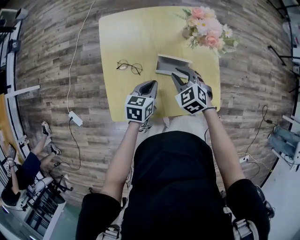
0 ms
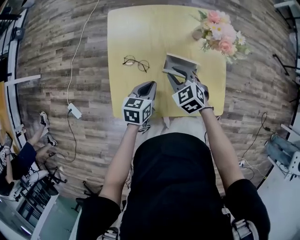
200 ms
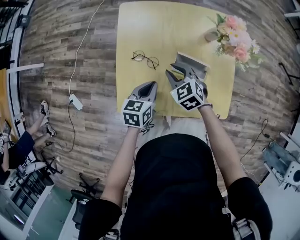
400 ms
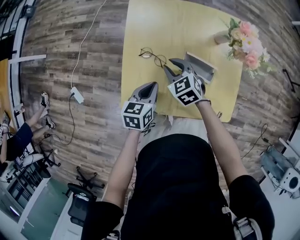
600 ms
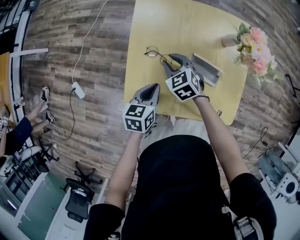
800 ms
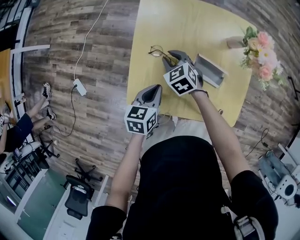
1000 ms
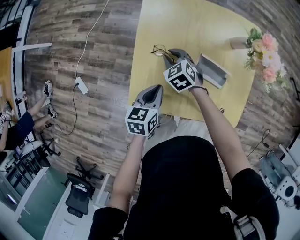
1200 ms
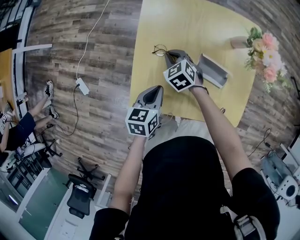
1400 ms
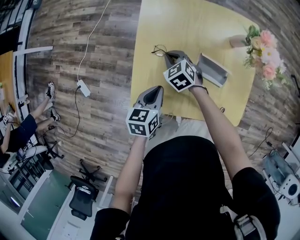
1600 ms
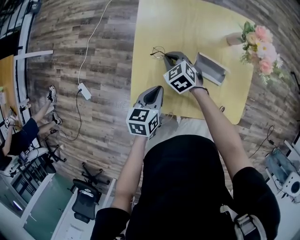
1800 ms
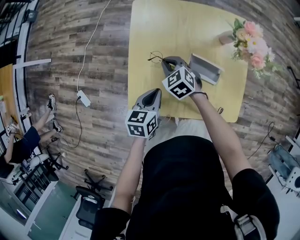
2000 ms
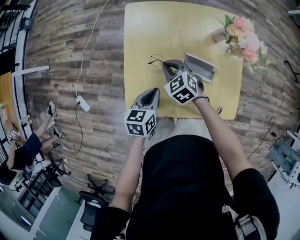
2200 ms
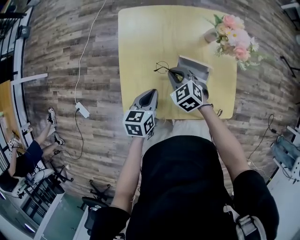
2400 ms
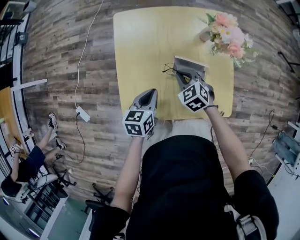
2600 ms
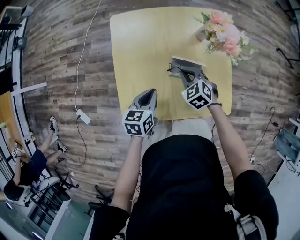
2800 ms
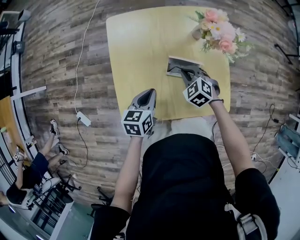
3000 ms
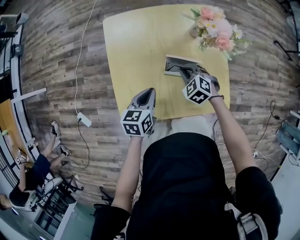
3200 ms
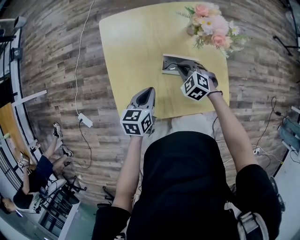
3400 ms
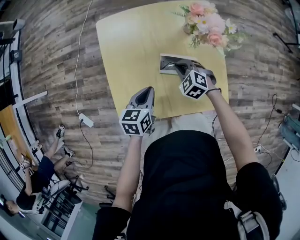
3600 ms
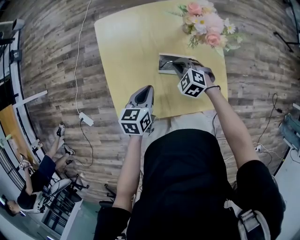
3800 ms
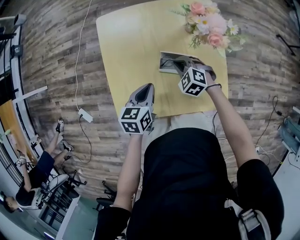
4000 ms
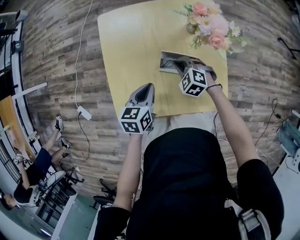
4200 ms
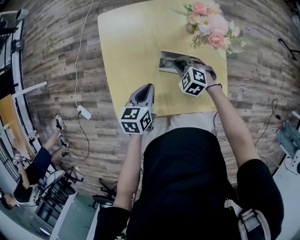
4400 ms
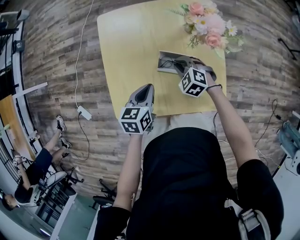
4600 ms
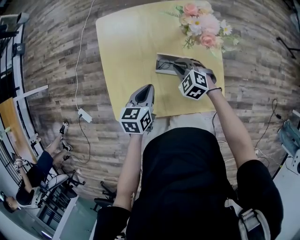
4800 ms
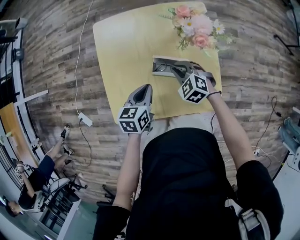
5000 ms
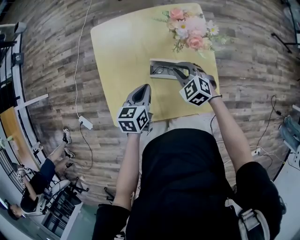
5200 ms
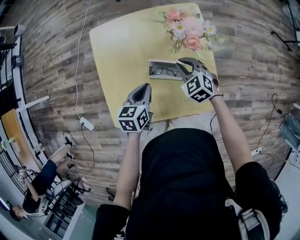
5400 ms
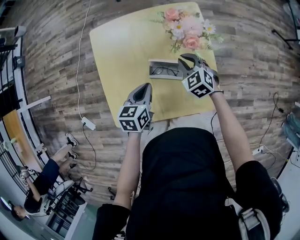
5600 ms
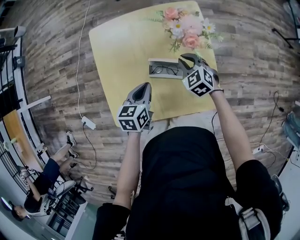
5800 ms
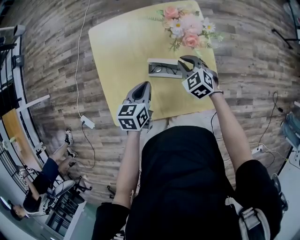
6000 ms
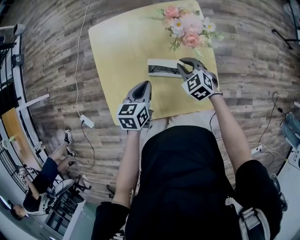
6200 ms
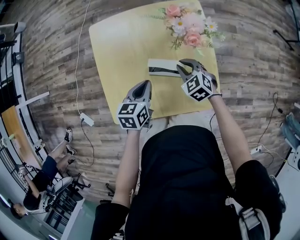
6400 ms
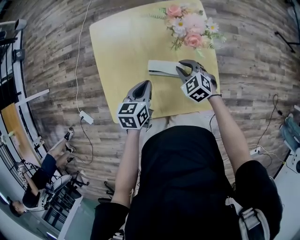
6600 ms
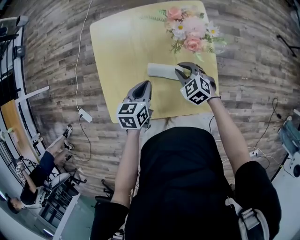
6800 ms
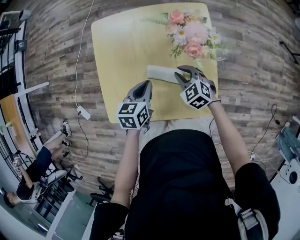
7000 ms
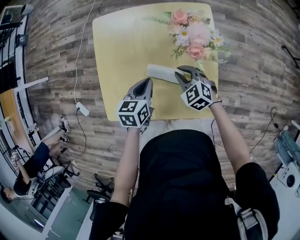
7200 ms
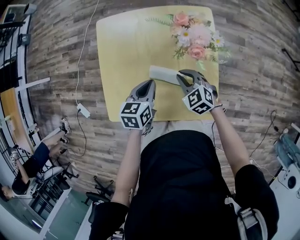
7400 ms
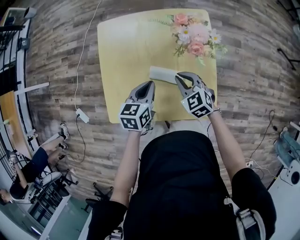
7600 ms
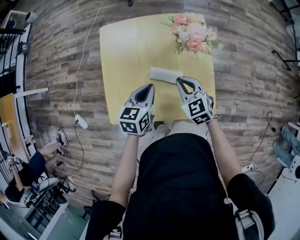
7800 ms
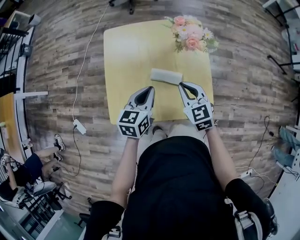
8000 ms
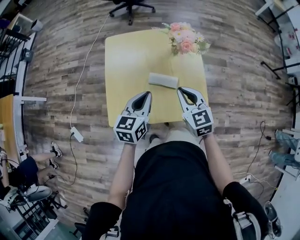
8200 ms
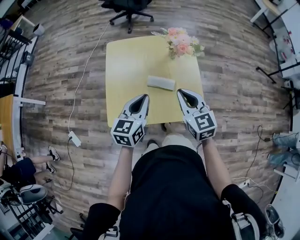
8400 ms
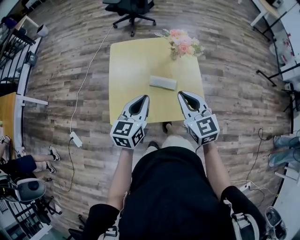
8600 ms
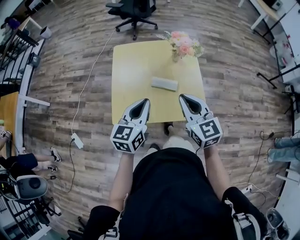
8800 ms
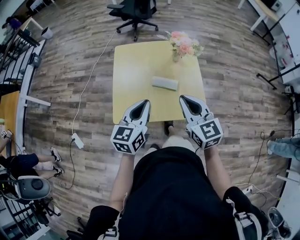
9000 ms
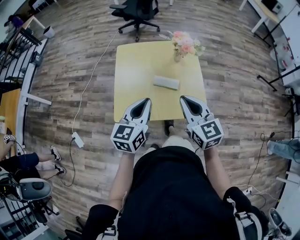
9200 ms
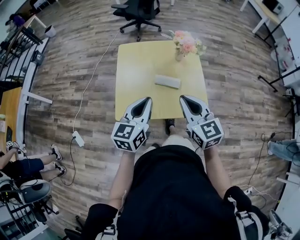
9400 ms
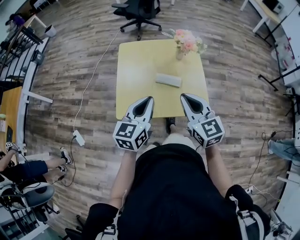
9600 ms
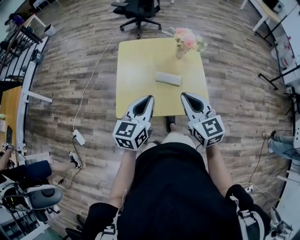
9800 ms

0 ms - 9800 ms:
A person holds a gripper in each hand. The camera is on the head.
0 ms - 1400 ms: The right gripper is displaced to the left, downward and forward by about 25 cm. Meanwhile the left gripper heads to the left, covering some 15 cm, and swivels approximately 20 degrees.
1400 ms - 2800 ms: The right gripper travels to the right by some 15 cm. The left gripper goes some 5 cm to the right.
2800 ms - 4200 ms: The right gripper shifts by roughly 5 cm.
4200 ms - 5600 ms: The left gripper moves about 5 cm; the right gripper moves to the right and upward, about 10 cm, and rotates about 20 degrees.
5600 ms - 7000 ms: The right gripper ends up roughly 5 cm from where it was.
7000 ms - 8400 ms: The grippers both shift upward and backward by some 25 cm. The left gripper changes its angle by approximately 30 degrees, while the right gripper changes its angle by some 40 degrees.
8400 ms - 9800 ms: The grippers both shift backward and upward by approximately 10 cm.

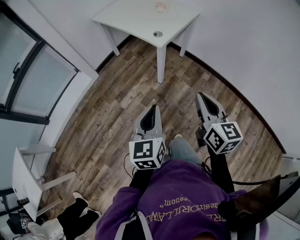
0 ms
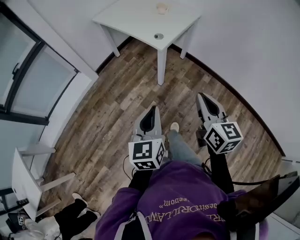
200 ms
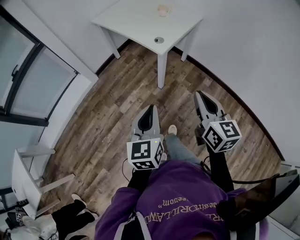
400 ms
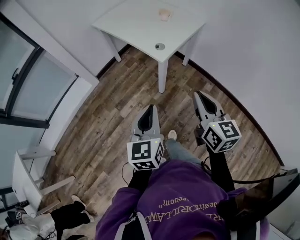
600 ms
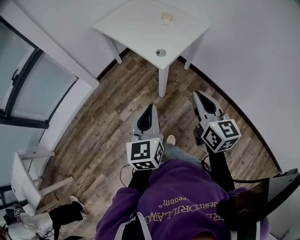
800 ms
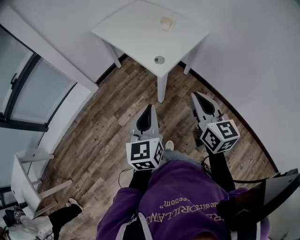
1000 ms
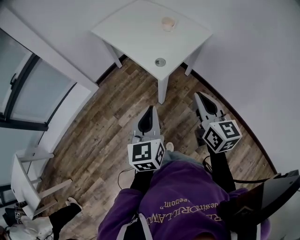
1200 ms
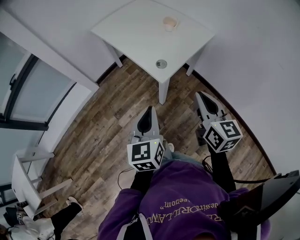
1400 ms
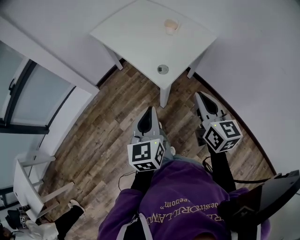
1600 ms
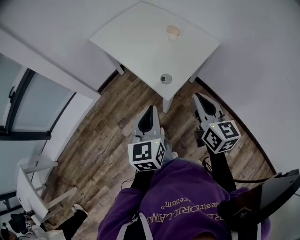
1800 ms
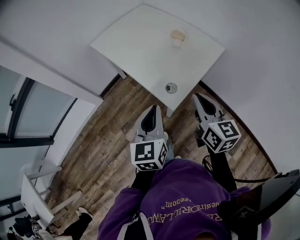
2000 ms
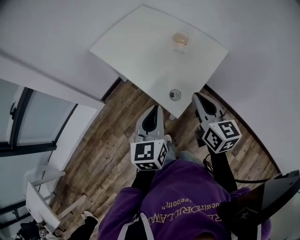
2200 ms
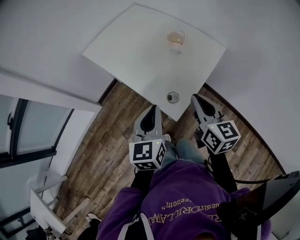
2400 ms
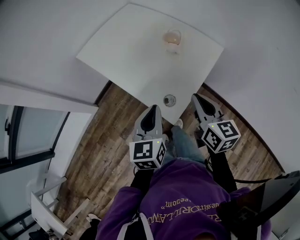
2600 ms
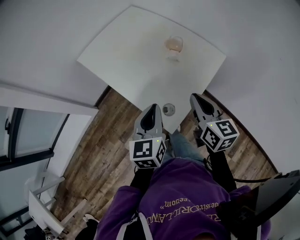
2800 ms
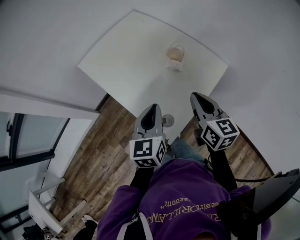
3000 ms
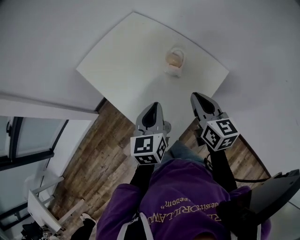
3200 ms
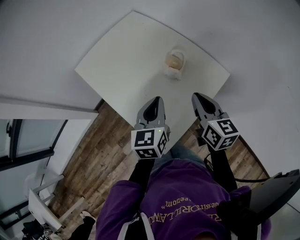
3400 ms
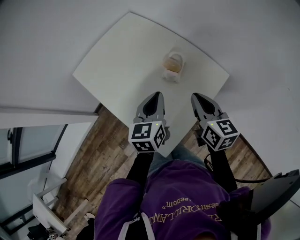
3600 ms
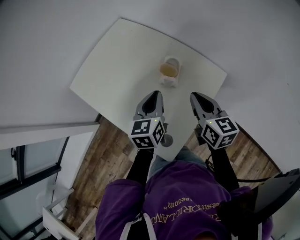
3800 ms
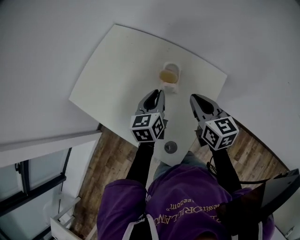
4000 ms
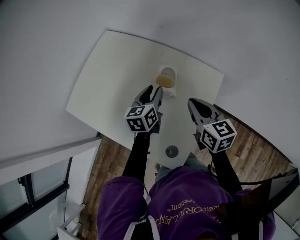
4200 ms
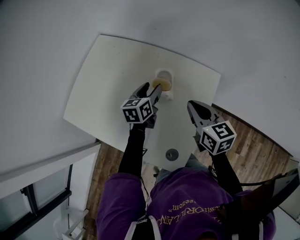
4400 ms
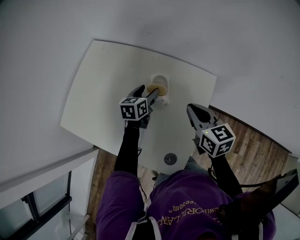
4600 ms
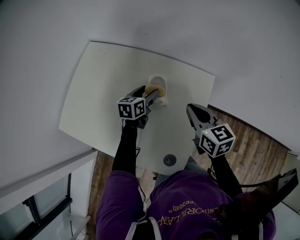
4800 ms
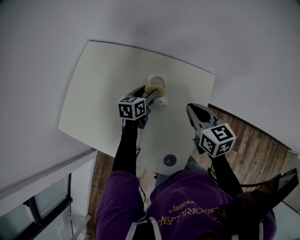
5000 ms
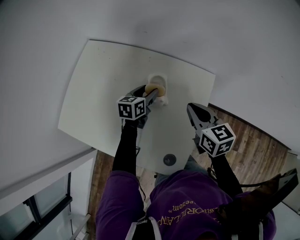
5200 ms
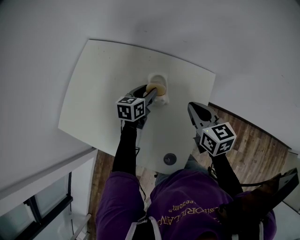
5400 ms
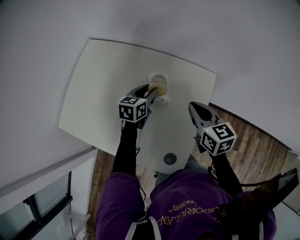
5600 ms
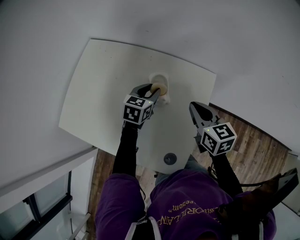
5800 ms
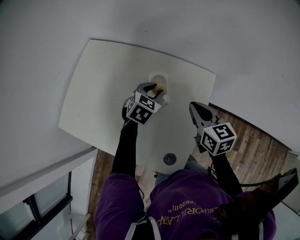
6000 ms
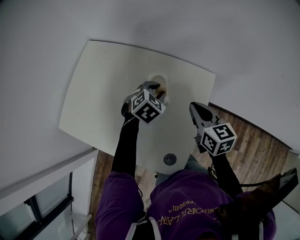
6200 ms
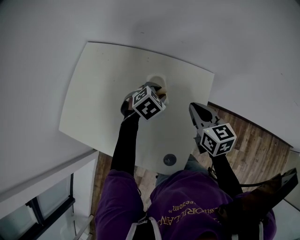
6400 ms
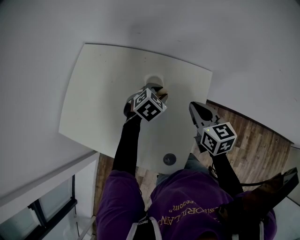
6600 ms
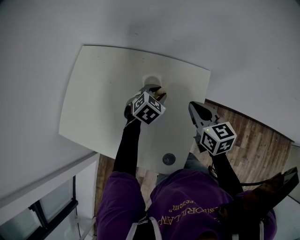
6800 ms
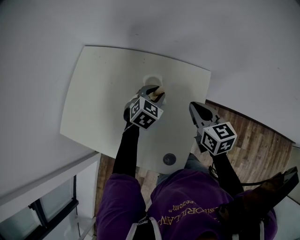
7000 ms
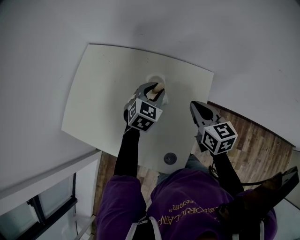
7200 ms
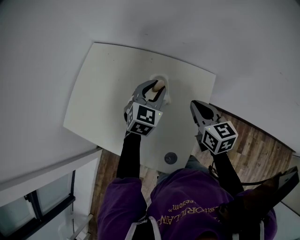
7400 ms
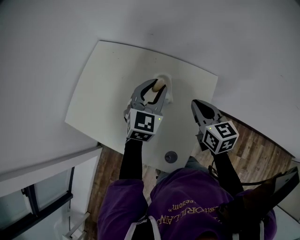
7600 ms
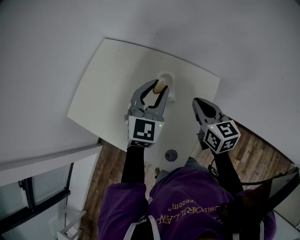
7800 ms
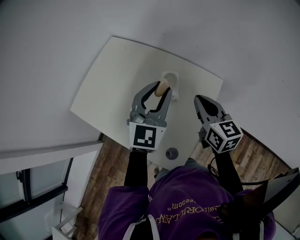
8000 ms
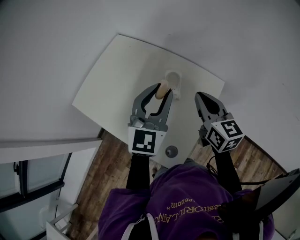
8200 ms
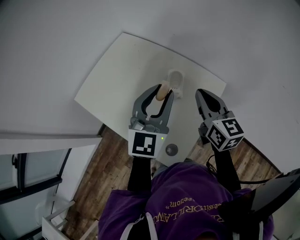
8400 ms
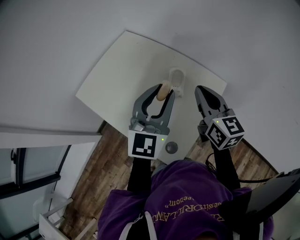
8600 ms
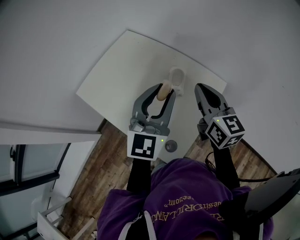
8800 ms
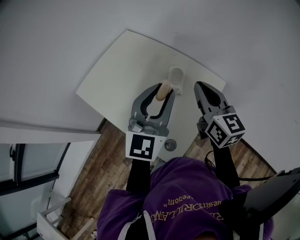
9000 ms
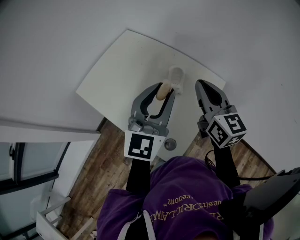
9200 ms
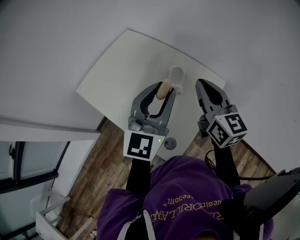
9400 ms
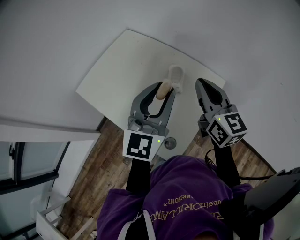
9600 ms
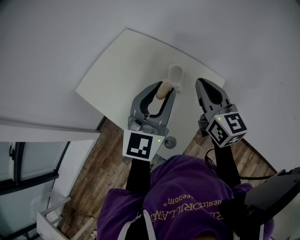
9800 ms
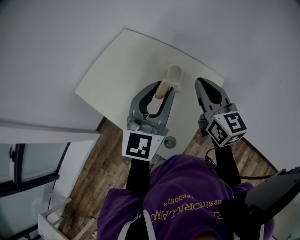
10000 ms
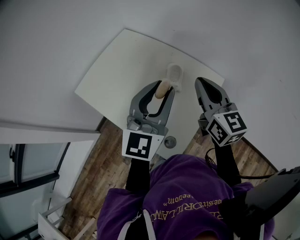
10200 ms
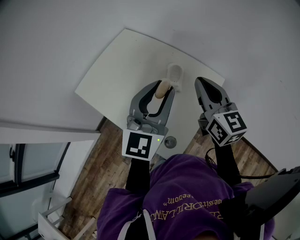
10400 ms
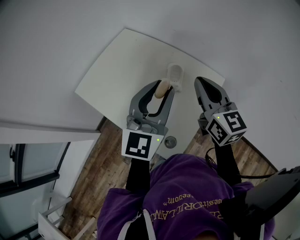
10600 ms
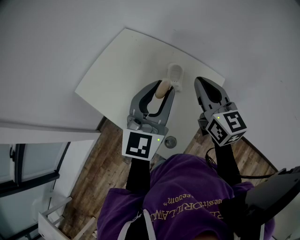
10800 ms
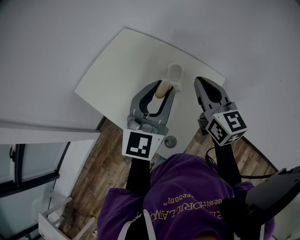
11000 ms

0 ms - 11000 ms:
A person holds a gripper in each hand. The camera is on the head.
0 ms - 1600 ms: The two grippers go some 30 cm forward.
1600 ms - 3200 ms: The grippers both shift forward by some 35 cm.
3200 ms - 4800 ms: The right gripper ends up about 15 cm from where it was, while the left gripper changes place by about 30 cm, rotates roughly 40 degrees, and opens its fingers.
4800 ms - 6200 ms: The left gripper moves to the right, roughly 5 cm, twists approximately 50 degrees clockwise, seen from behind, and closes.
6200 ms - 7800 ms: The left gripper travels upward by roughly 20 cm, and tips its fingers upward by roughly 40 degrees.
7800 ms - 9400 ms: The right gripper shifts about 10 cm upward; the left gripper heads backward and upward, covering approximately 15 cm, and rotates about 20 degrees.
9400 ms - 11000 ms: Neither gripper changes place.

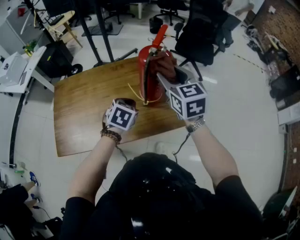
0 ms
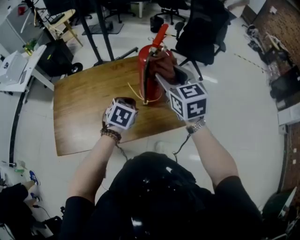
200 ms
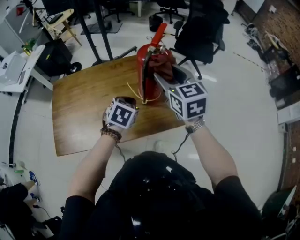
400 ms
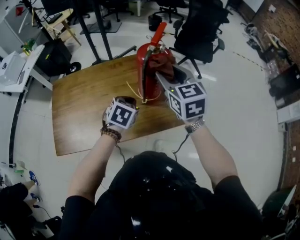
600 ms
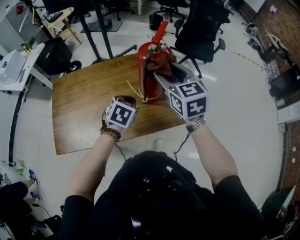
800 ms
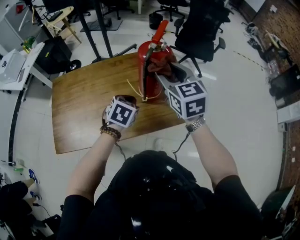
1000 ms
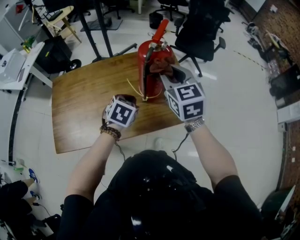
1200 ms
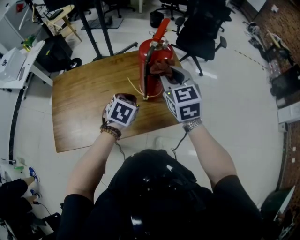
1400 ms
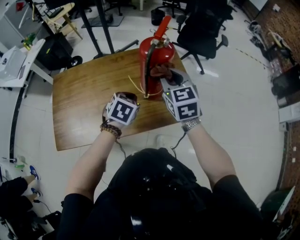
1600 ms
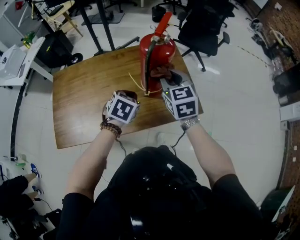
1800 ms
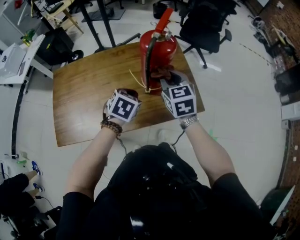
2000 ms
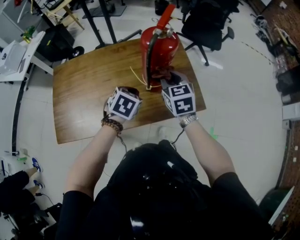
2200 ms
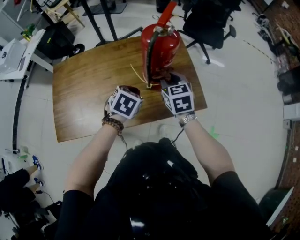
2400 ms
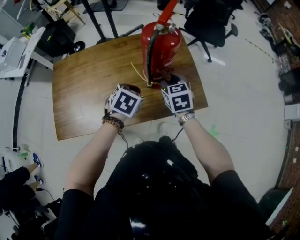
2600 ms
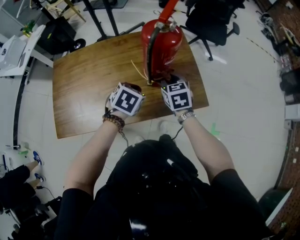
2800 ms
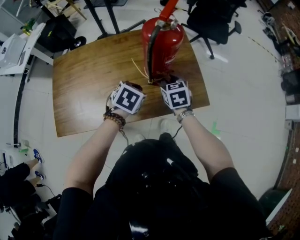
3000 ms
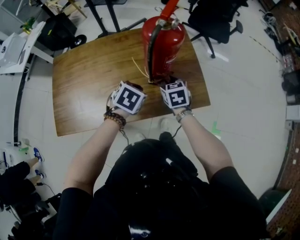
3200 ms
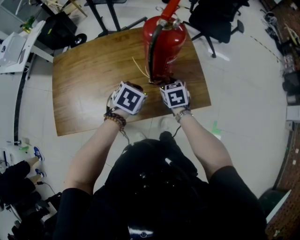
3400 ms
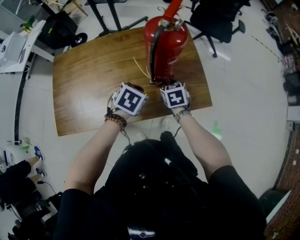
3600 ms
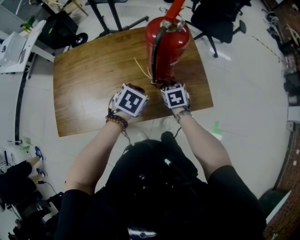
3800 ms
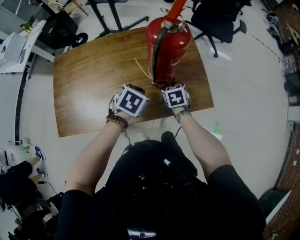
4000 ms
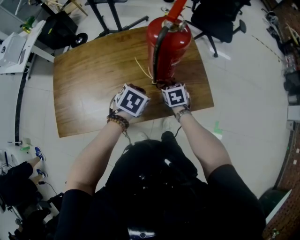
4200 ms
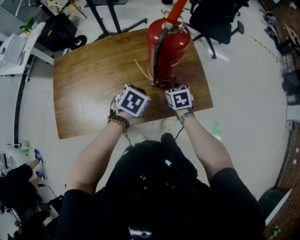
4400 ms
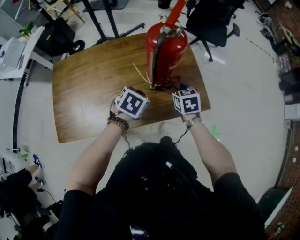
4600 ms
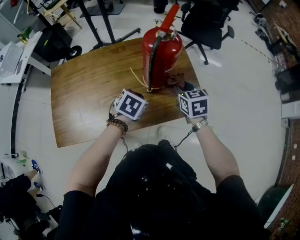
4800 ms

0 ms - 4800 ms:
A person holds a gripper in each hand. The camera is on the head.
0 ms - 1600 ms: The right gripper closes up.
1600 ms - 3200 ms: The left gripper shifts roughly 5 cm downward; the right gripper is displaced downward by some 20 cm, and turns by roughly 20 degrees.
3200 ms - 4800 ms: The right gripper moves upward and to the right, about 10 cm.
